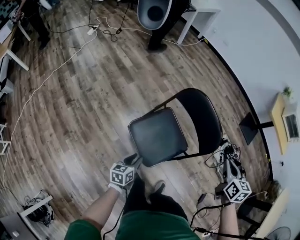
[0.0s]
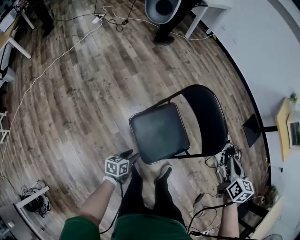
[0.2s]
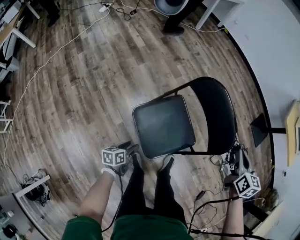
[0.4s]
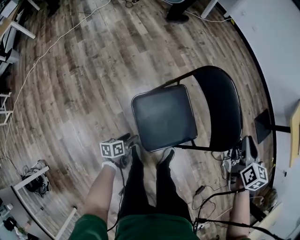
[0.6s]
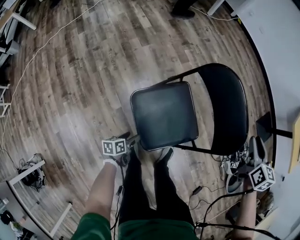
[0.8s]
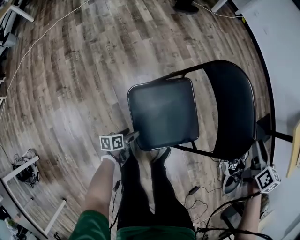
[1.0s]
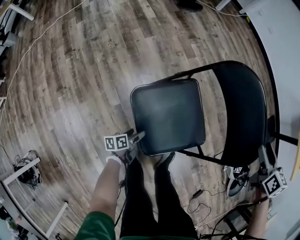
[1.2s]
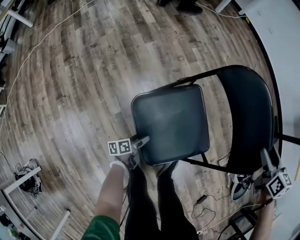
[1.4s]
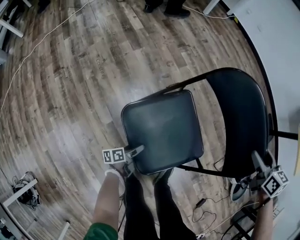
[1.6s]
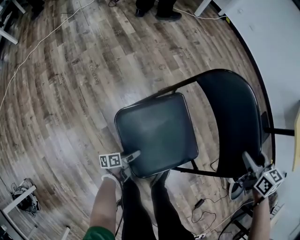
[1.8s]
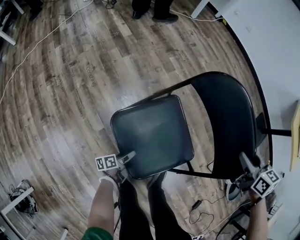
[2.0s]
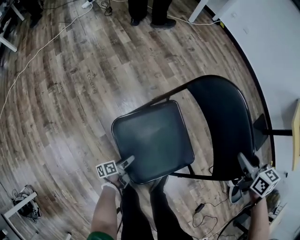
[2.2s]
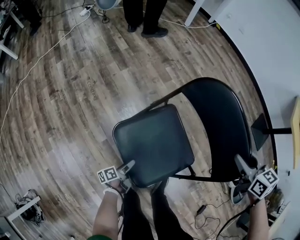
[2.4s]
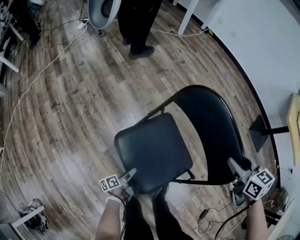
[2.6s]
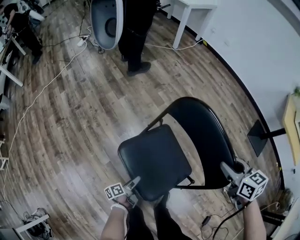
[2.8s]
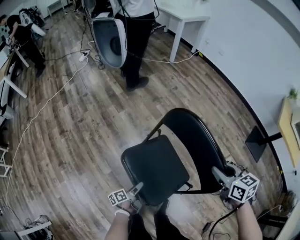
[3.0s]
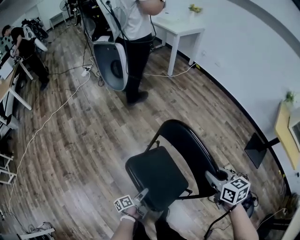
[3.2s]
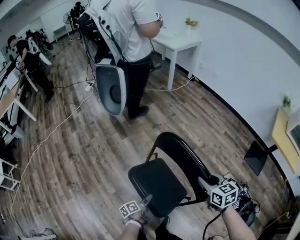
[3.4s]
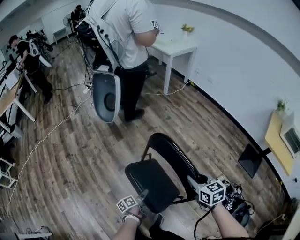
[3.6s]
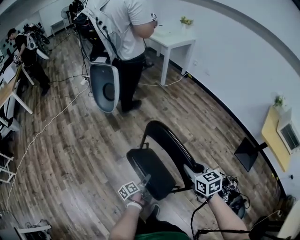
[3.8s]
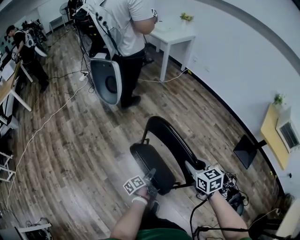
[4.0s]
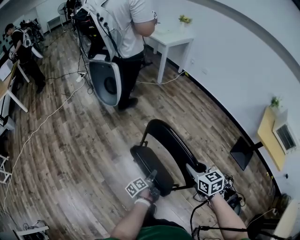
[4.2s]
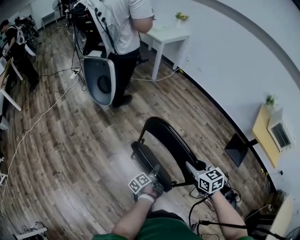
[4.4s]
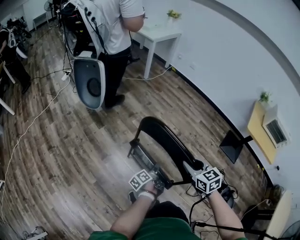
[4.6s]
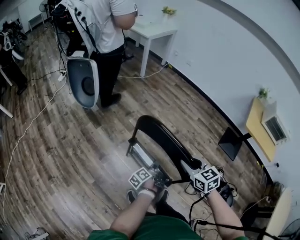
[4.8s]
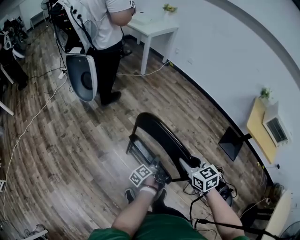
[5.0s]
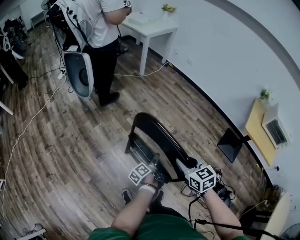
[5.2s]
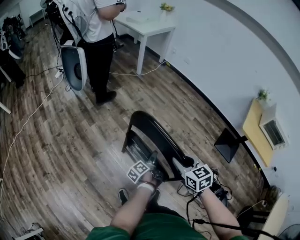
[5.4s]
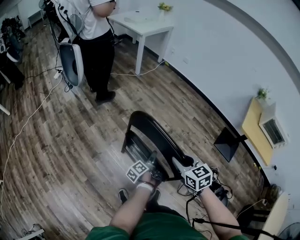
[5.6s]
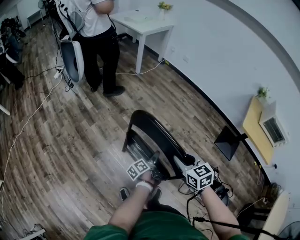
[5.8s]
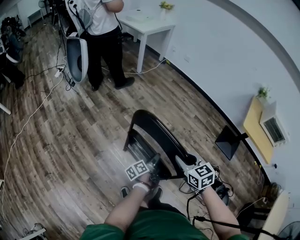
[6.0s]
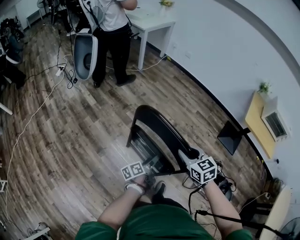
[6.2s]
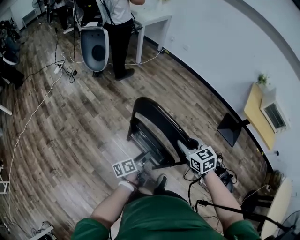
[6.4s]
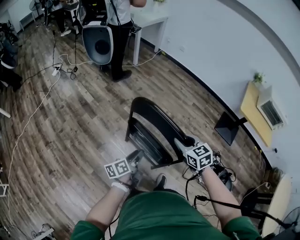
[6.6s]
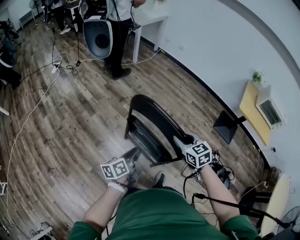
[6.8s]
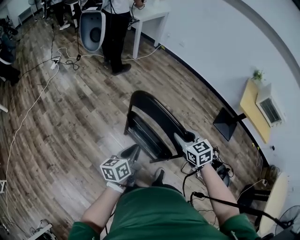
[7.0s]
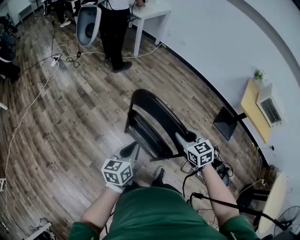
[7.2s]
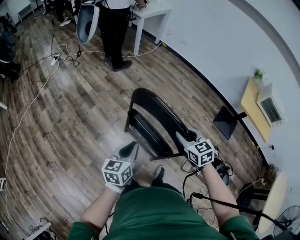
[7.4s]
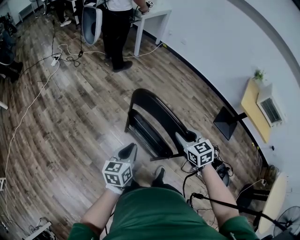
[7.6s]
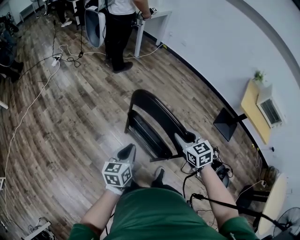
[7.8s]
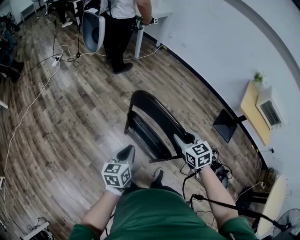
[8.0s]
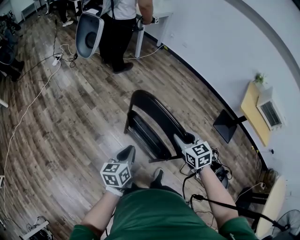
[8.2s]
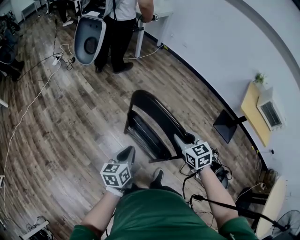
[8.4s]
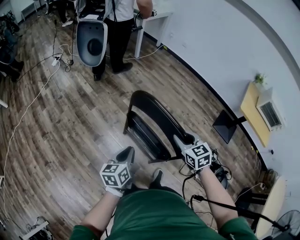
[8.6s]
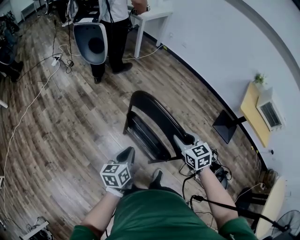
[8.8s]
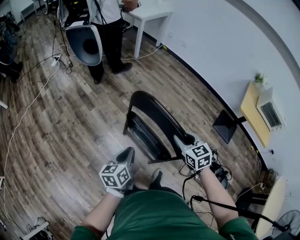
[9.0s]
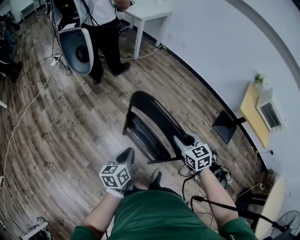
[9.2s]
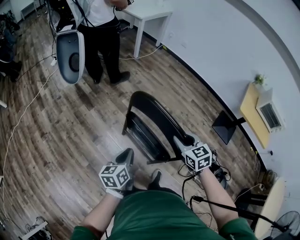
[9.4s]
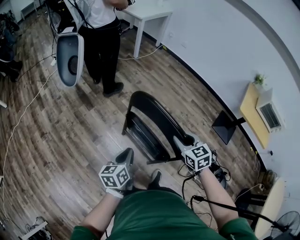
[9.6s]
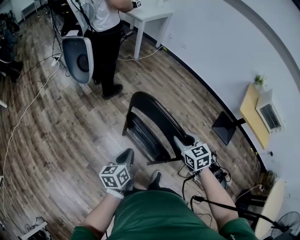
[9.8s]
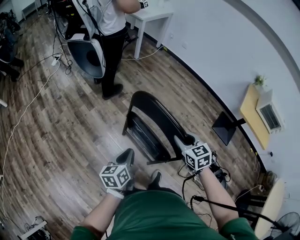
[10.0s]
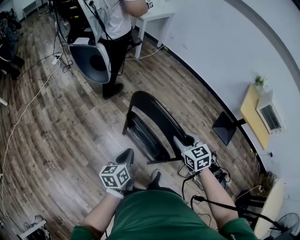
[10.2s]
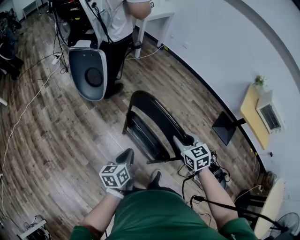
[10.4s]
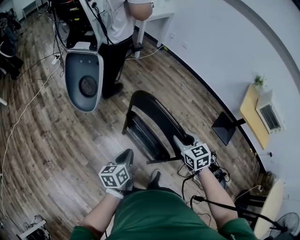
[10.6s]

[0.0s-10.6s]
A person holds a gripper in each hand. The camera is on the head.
0.0s to 1.6s: The right gripper goes some 25 cm downward and forward, turns by approximately 20 degrees, and opens. Meanwhile the left gripper is displaced downward by approximately 35 cm, rotates around the line of its fingers by approximately 40 degrees, counterclockwise from behind, and opens its fingers.
1.6s to 3.0s: The left gripper goes about 20 cm upward and to the right. The right gripper moves upward, about 10 cm, and closes its fingers.
3.0s to 4.6s: The right gripper moves upward, approximately 10 cm. The left gripper shifts approximately 30 cm to the right, upward and forward.
4.6s to 6.0s: The left gripper goes approximately 10 cm to the right and forward. The right gripper goes approximately 5 cm to the right.
6.0s to 7.6s: The left gripper goes approximately 25 cm upward, to the left and backward, twists some 50 degrees clockwise, seen from behind, and closes.
7.6s to 10.6s: The grippers make only small movements.

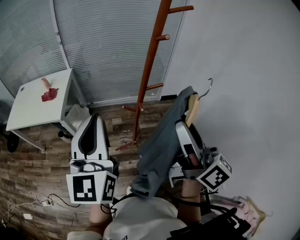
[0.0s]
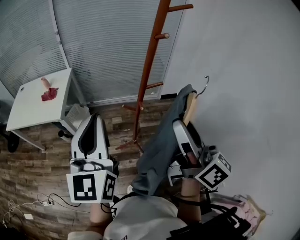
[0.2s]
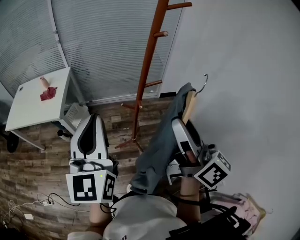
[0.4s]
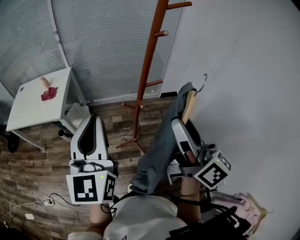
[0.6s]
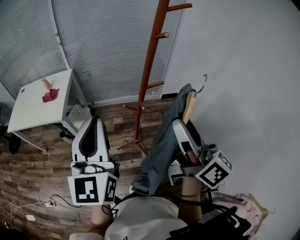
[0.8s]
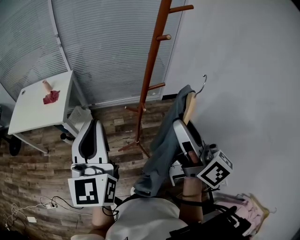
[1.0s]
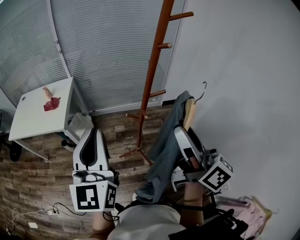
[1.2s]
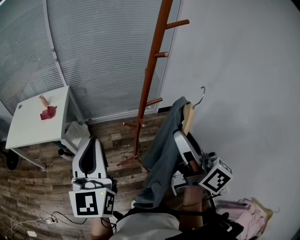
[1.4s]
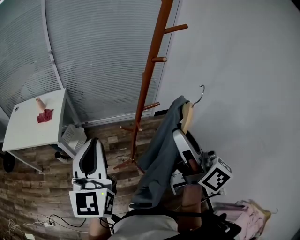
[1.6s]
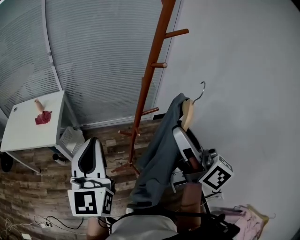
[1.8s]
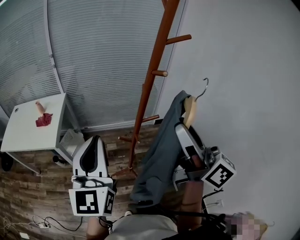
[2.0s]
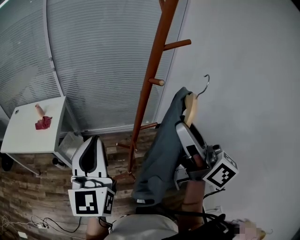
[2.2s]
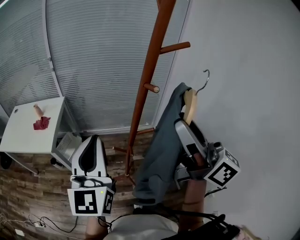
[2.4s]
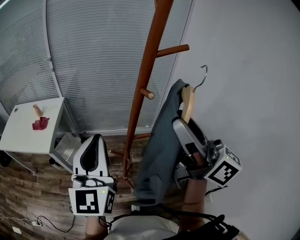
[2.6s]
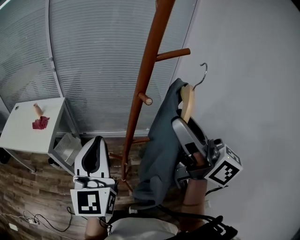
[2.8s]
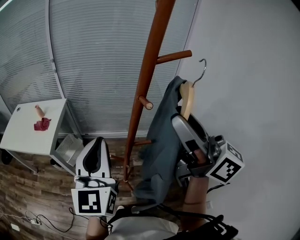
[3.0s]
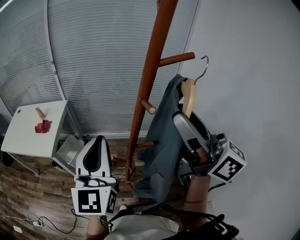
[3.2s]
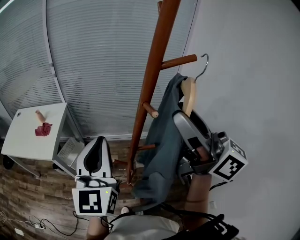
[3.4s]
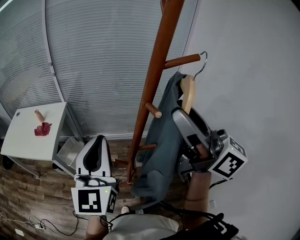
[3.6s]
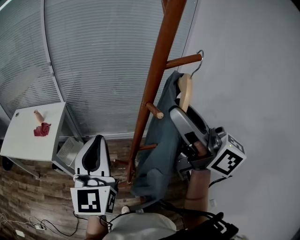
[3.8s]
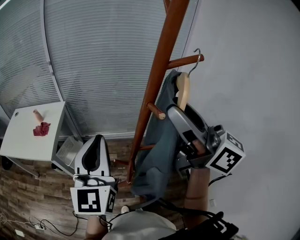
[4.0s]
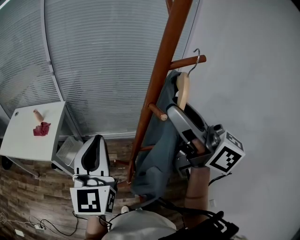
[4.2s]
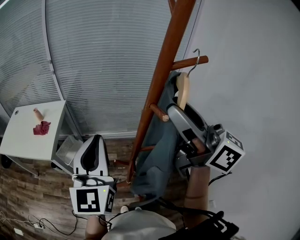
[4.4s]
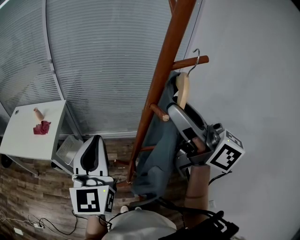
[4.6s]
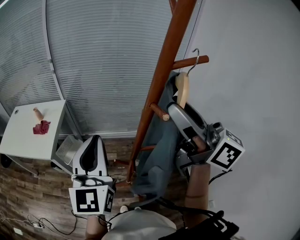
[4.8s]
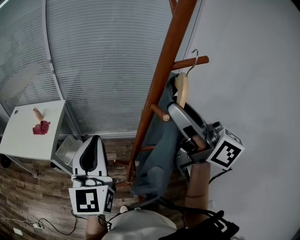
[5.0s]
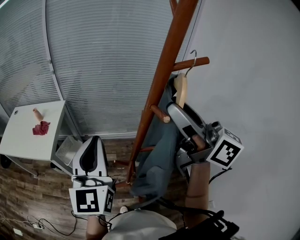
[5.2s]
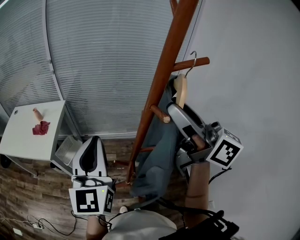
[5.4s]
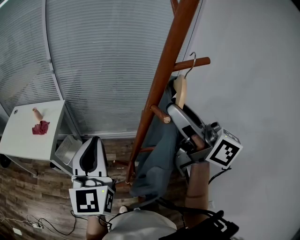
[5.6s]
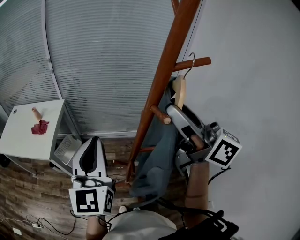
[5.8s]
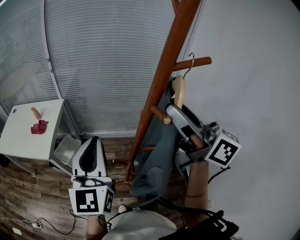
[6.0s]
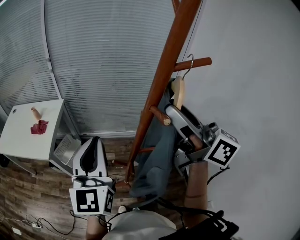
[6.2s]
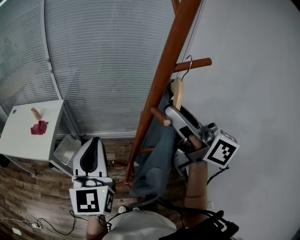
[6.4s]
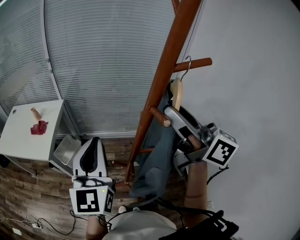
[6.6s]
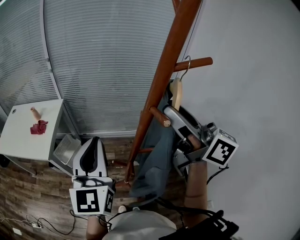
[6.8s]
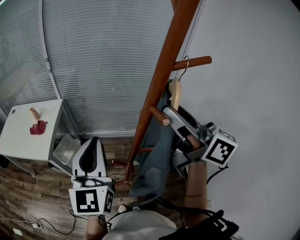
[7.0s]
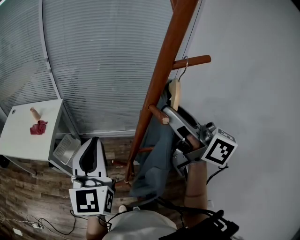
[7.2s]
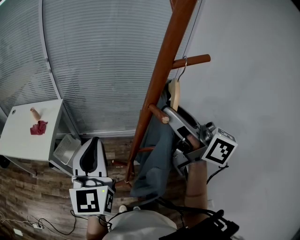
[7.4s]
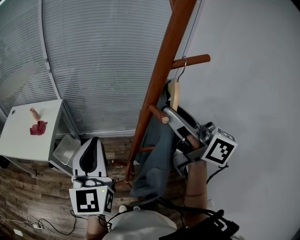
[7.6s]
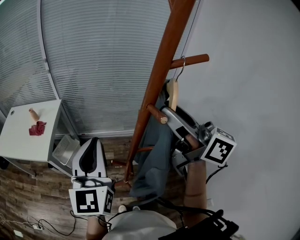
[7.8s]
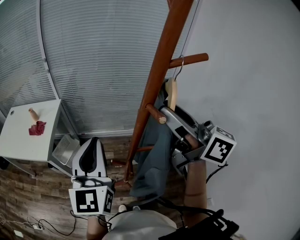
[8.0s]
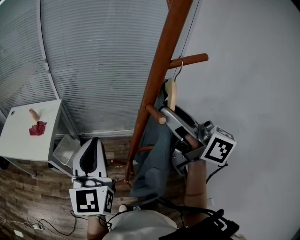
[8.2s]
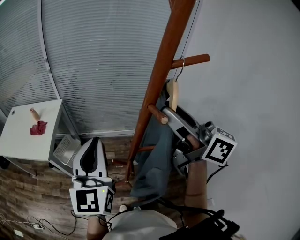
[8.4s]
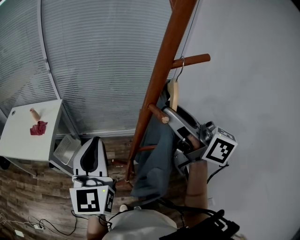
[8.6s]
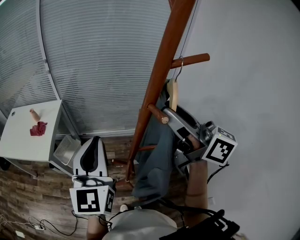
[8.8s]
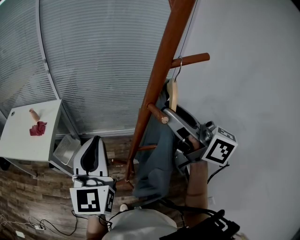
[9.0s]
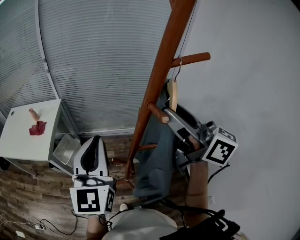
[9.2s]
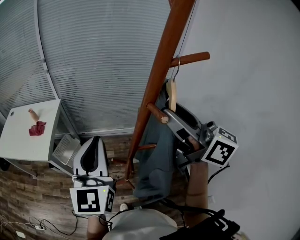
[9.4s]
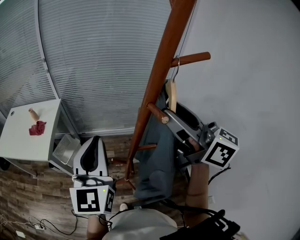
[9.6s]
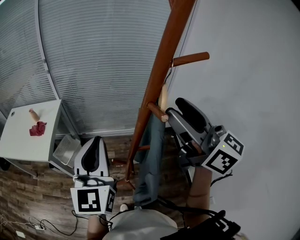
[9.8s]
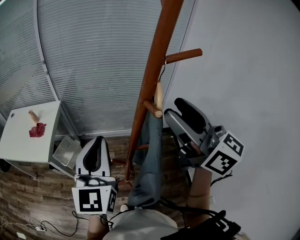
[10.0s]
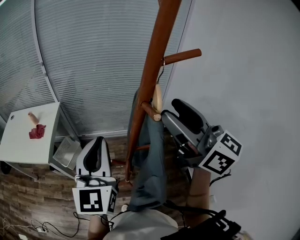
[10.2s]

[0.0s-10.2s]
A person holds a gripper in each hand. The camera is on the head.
0.0s to 1.4s: The grippers stay close to where they were, moving slightly.
1.4s to 3.0s: The left gripper heads to the right and forward, covering some 15 cm; the right gripper travels forward, upward and to the right by some 20 cm, and swivels about 20 degrees.
3.0s to 5.8s: The grippers stay close to where they were, moving slightly.
5.8s to 7.2s: There are only small adjustments of the grippers.
7.2s to 8.8s: The two grippers keep their place.
8.8s to 10.2s: The grippers stay close to where they were, moving slightly.

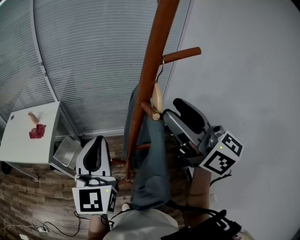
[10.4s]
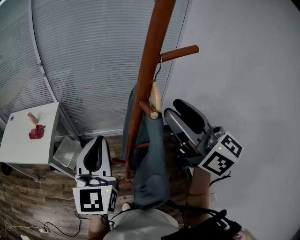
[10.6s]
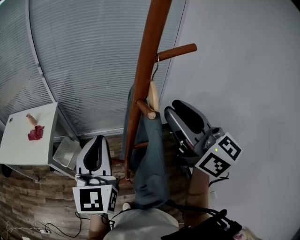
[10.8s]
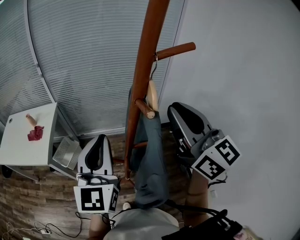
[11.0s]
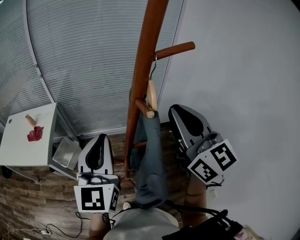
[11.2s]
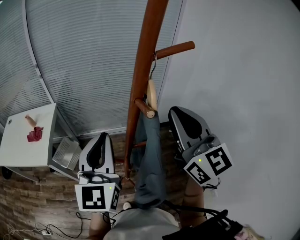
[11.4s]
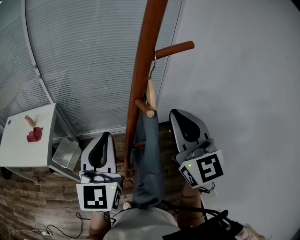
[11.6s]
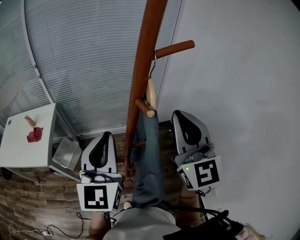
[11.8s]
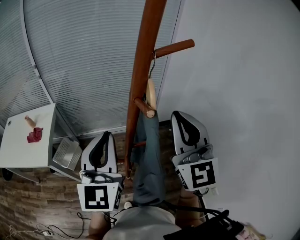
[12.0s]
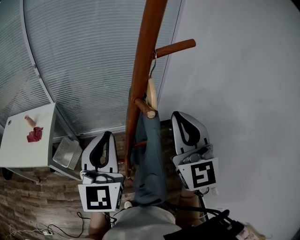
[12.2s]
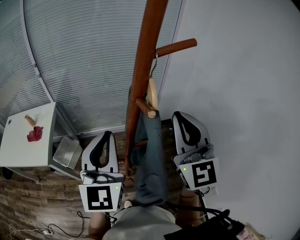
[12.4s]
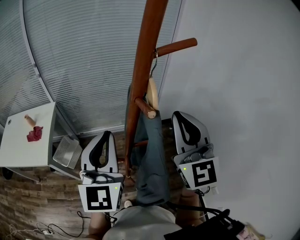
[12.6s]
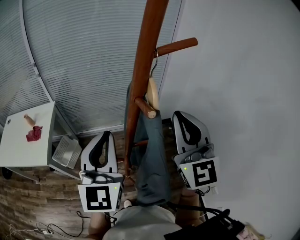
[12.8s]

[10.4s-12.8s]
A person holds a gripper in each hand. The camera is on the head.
10.4s to 11.6s: The right gripper changes place by approximately 5 cm, turns by some 40 degrees, and closes.
11.6s to 12.8s: The grippers move only a little.
